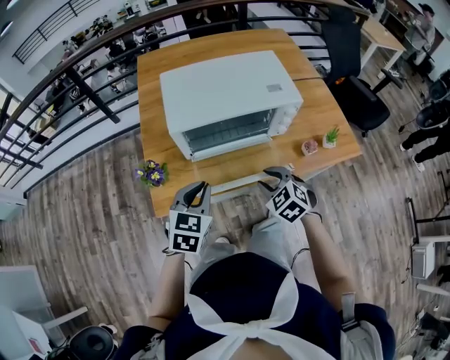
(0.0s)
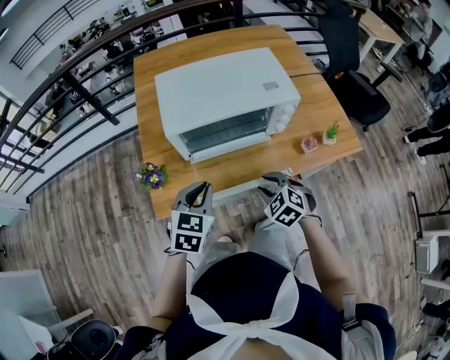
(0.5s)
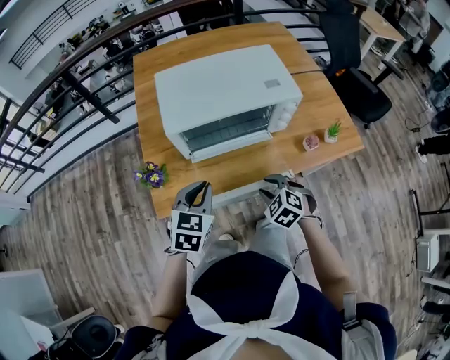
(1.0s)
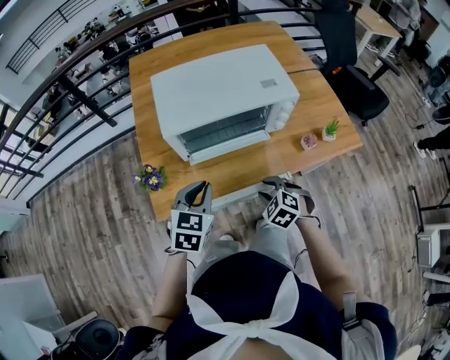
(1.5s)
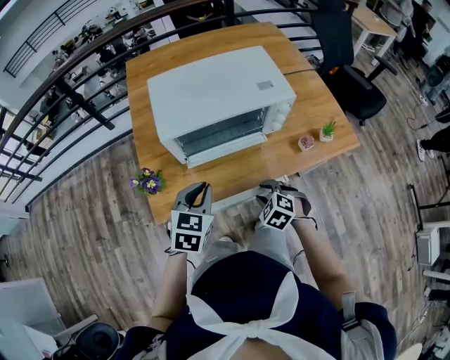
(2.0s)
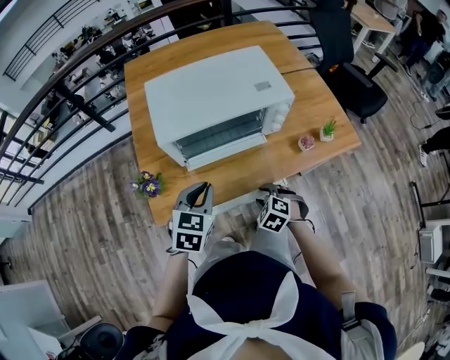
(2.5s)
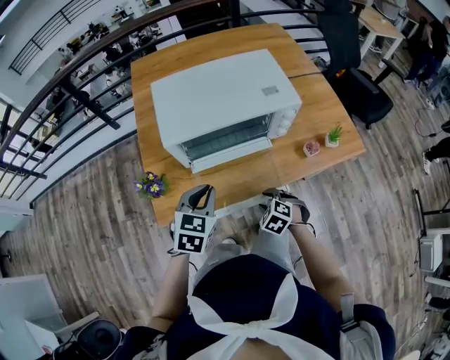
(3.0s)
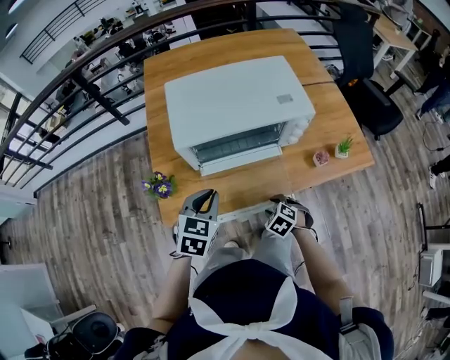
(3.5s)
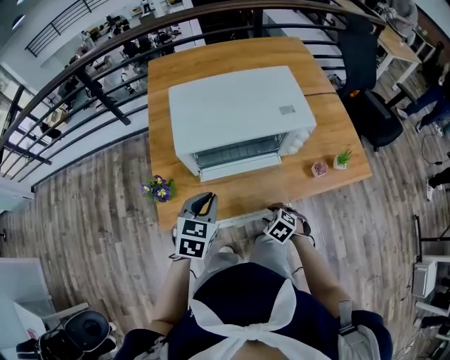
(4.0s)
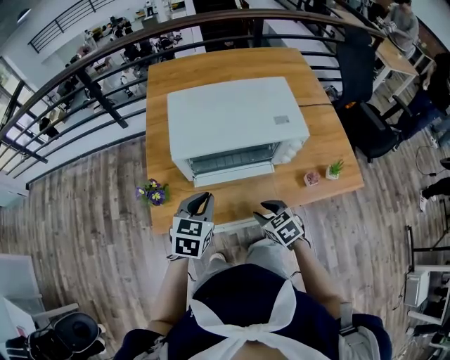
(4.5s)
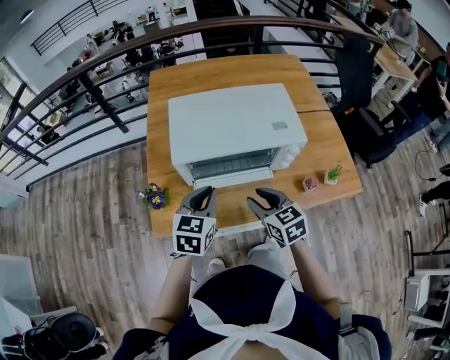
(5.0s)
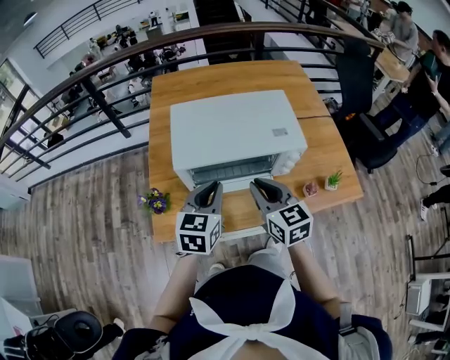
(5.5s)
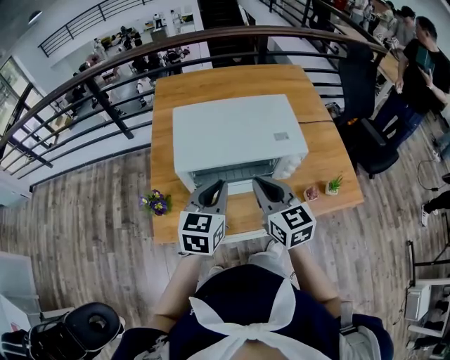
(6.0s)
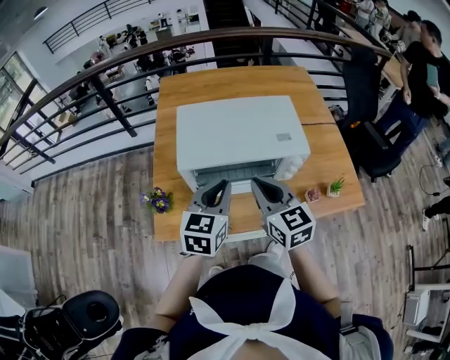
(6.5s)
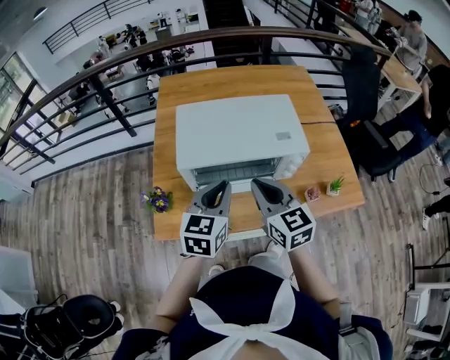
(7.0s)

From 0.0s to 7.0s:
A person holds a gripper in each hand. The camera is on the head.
From 0.0s to 2.0s: The right gripper moves downward, approximately 10 cm.
From 2.0s to 3.5s: The right gripper travels downward by approximately 5 cm.
From 3.5s to 5.0s: The left gripper goes roughly 5 cm upward; the right gripper goes some 20 cm upward and forward, and tilts its fingers approximately 40 degrees upward.
From 5.0s to 7.0s: The right gripper is displaced upward by about 10 cm, and closes. Meanwhile the left gripper travels upward by some 5 cm.

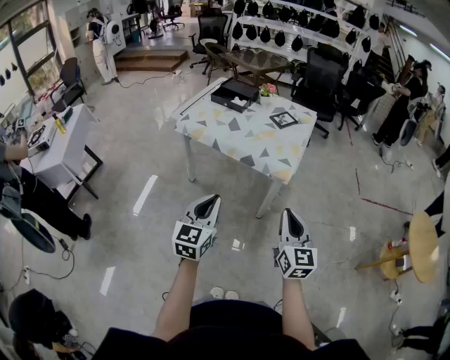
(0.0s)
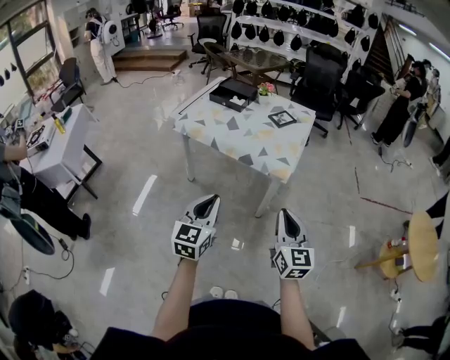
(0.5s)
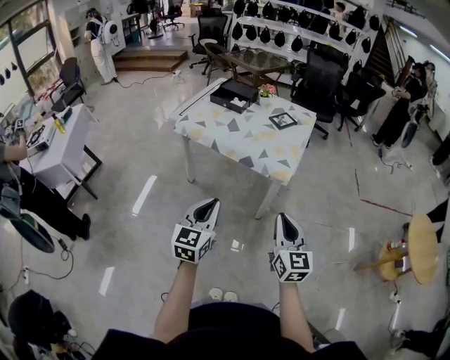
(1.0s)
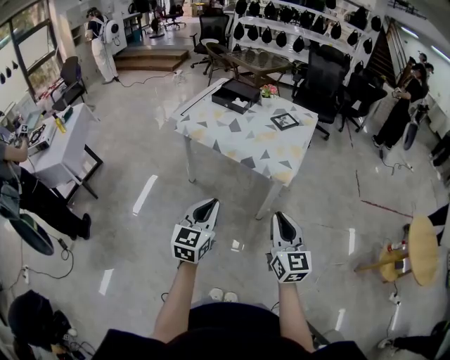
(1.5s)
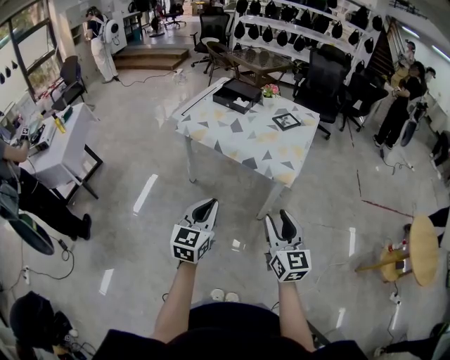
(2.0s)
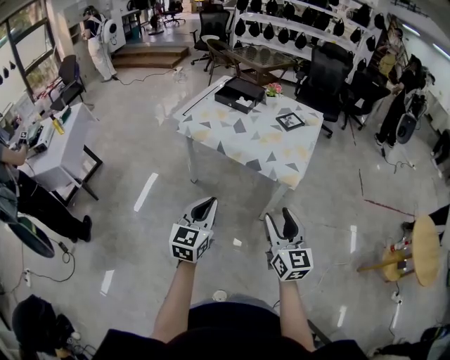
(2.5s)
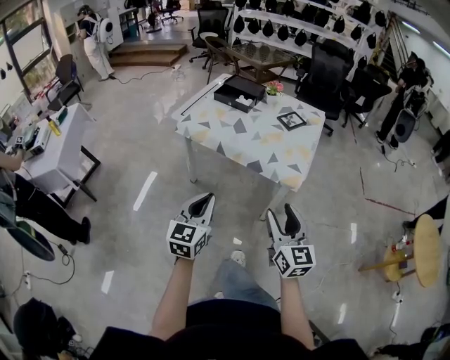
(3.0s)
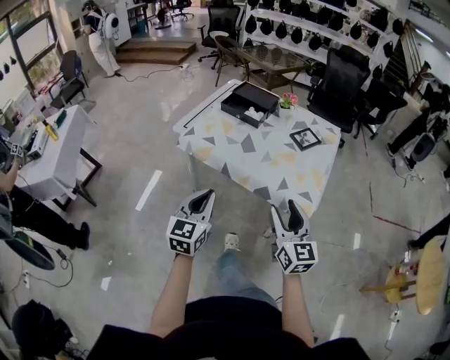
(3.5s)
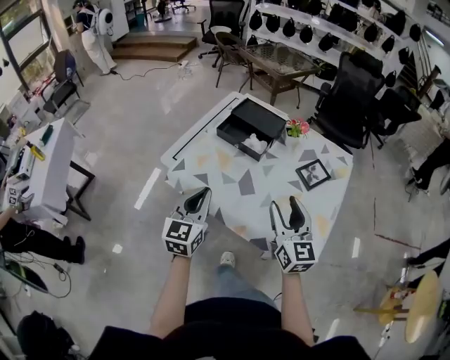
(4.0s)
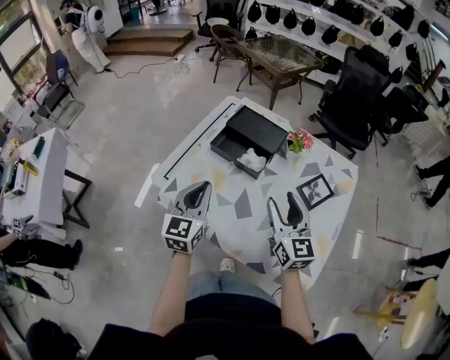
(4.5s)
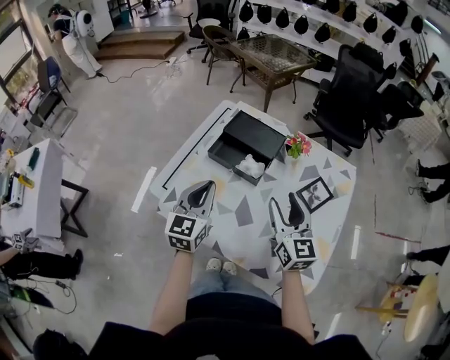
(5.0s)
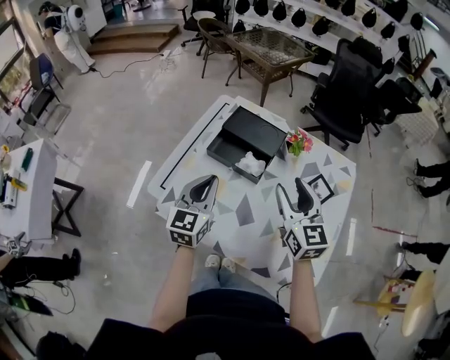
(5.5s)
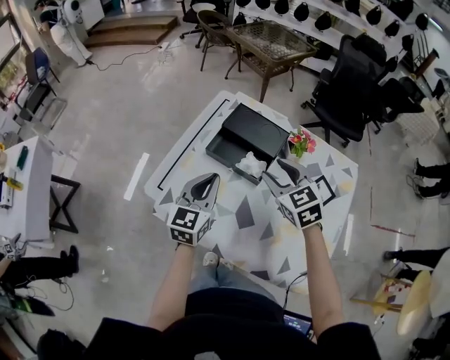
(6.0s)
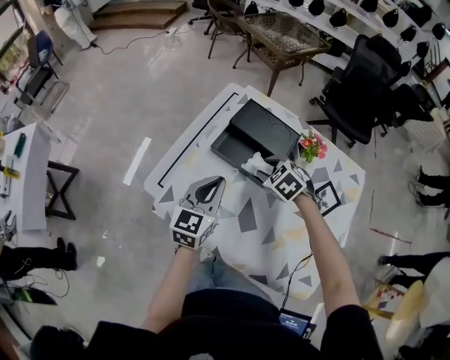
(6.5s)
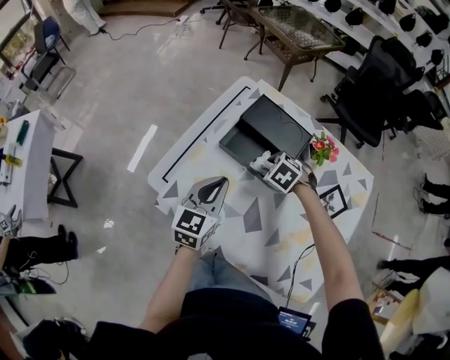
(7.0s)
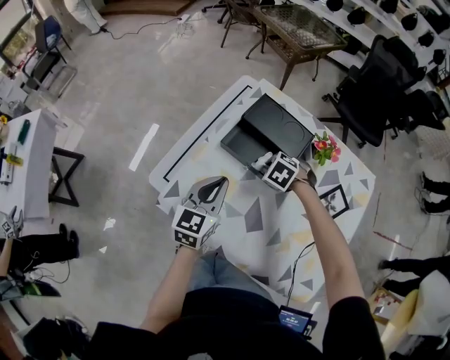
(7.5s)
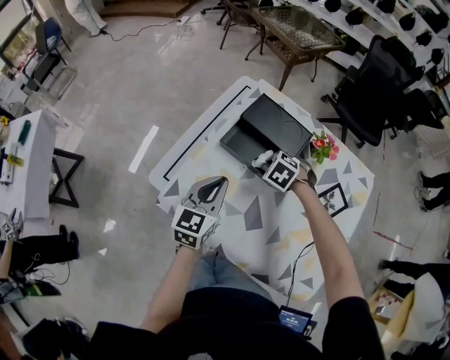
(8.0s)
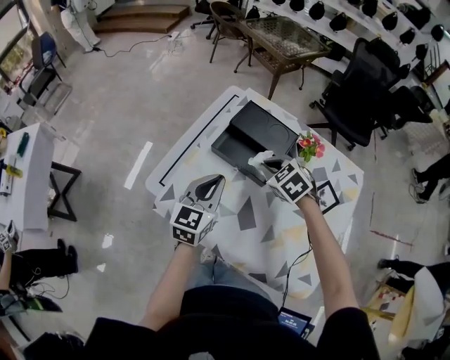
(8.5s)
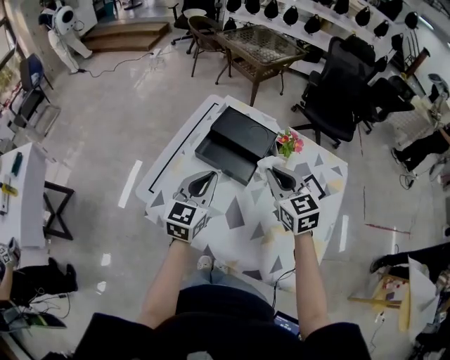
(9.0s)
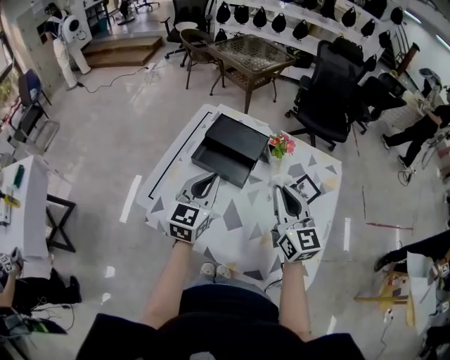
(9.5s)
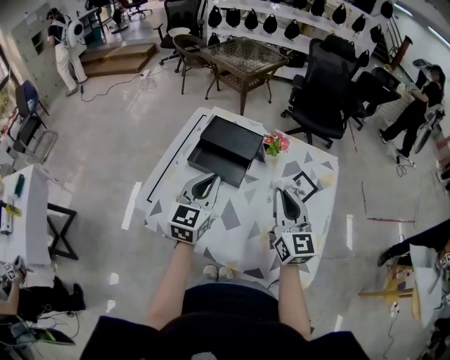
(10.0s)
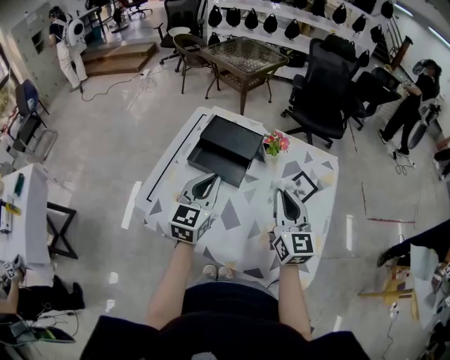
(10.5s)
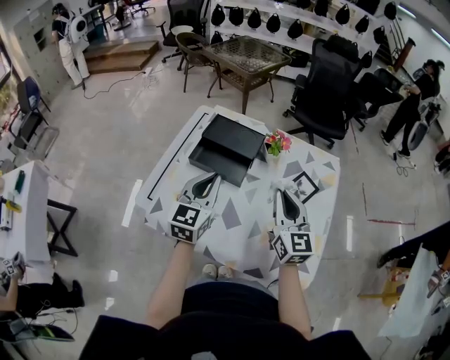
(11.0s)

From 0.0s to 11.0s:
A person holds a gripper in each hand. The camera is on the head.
From 0.0s to 2.0s: The right gripper ends up some 5 cm from where it was, and opens its fingers.
From 2.0s to 3.5s: The grippers both shift forward by approximately 20 cm.
From 3.5s to 5.5s: Both grippers are carried forward, roughly 40 cm.
From 5.5s to 7.5s: The left gripper travels downward by some 5 cm; the right gripper goes about 25 cm downward, tips its fingers downward by some 70 degrees, and closes its fingers.
From 7.5s to 9.0s: The right gripper heads upward, covering approximately 20 cm, and tilts its fingers some 50 degrees upward. Meanwhile the left gripper heads upward, covering about 5 cm.
From 9.0s to 11.0s: The left gripper moves approximately 5 cm. Meanwhile the right gripper is displaced backward and to the right by roughly 10 cm, and swivels some 30 degrees.

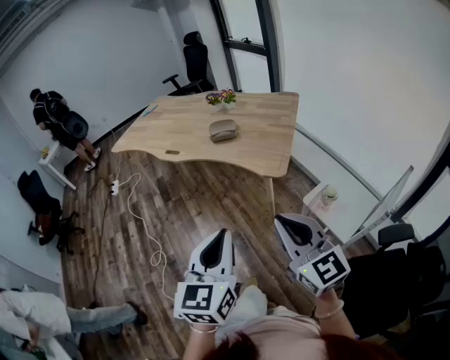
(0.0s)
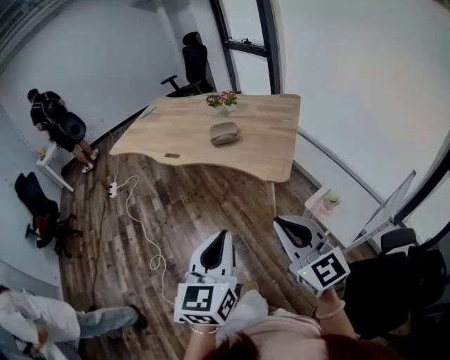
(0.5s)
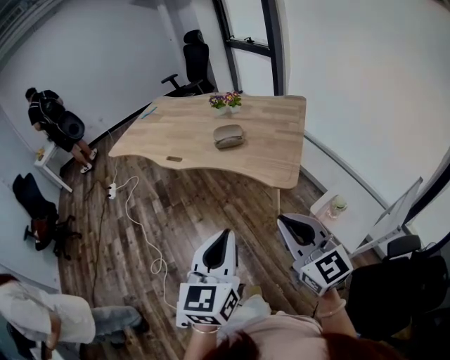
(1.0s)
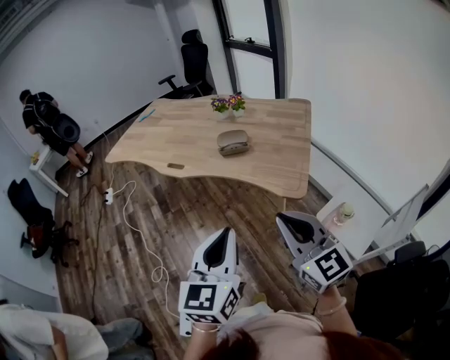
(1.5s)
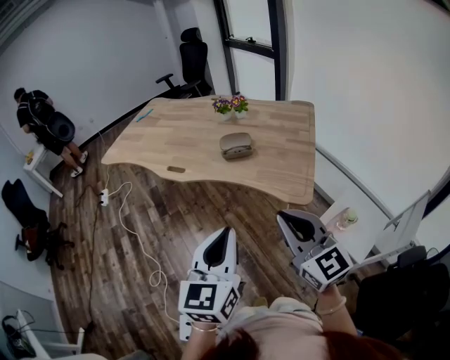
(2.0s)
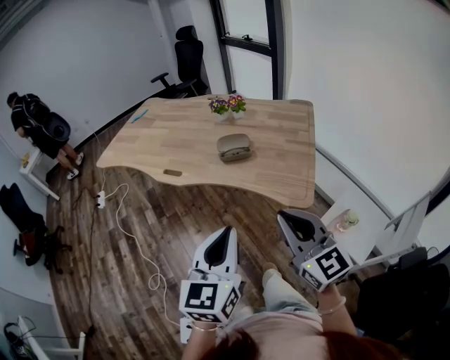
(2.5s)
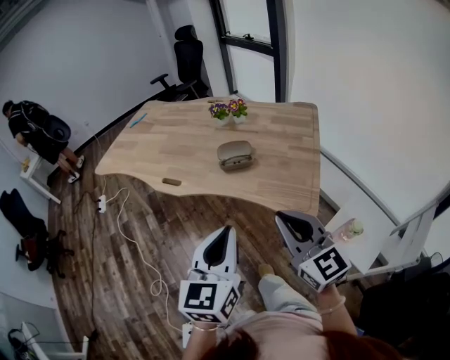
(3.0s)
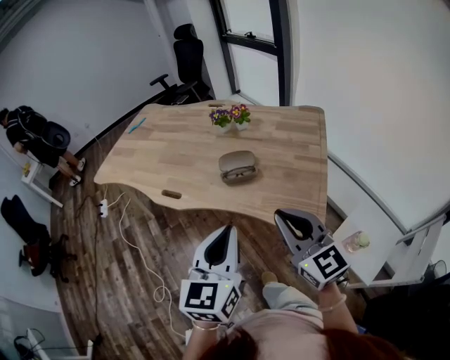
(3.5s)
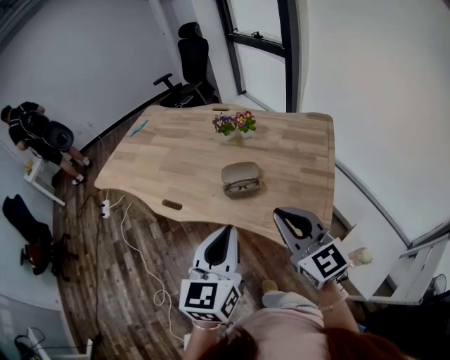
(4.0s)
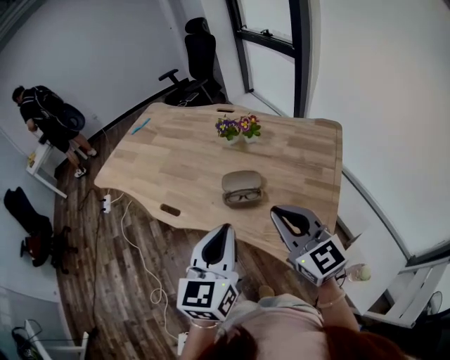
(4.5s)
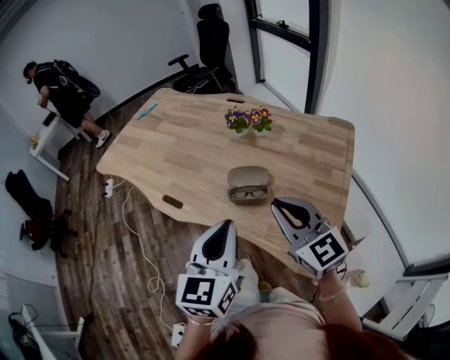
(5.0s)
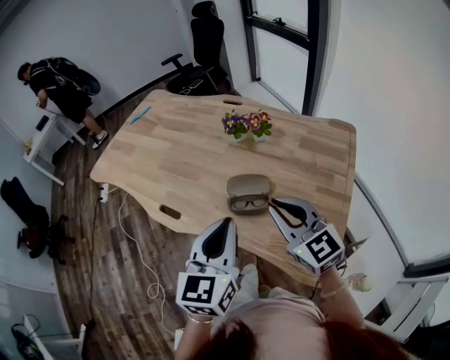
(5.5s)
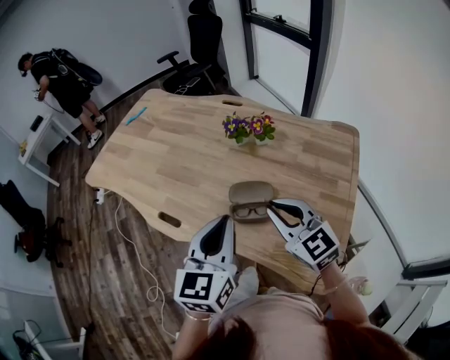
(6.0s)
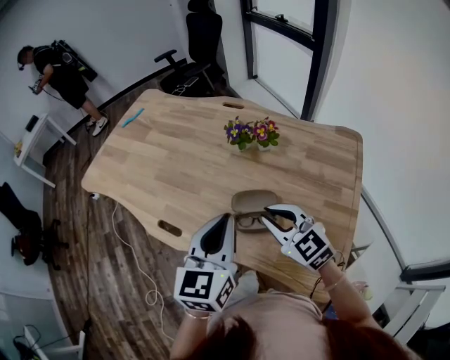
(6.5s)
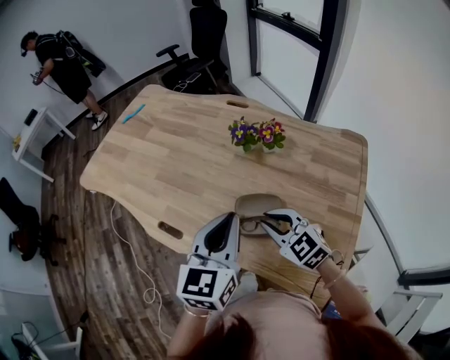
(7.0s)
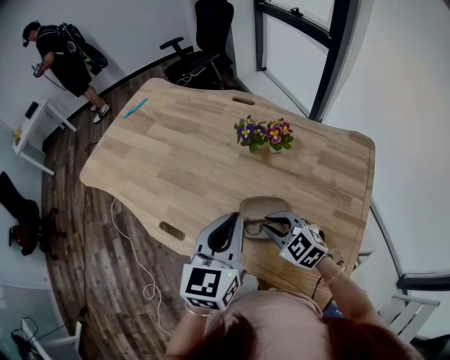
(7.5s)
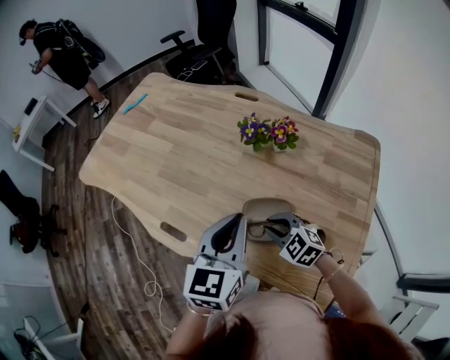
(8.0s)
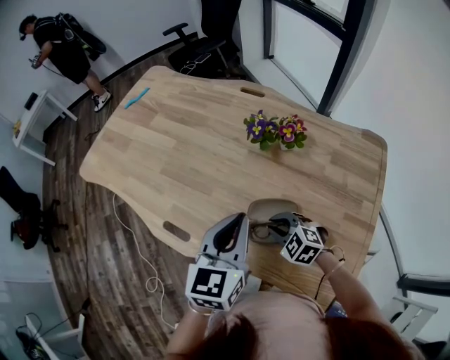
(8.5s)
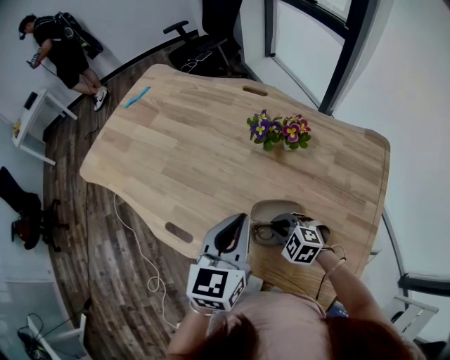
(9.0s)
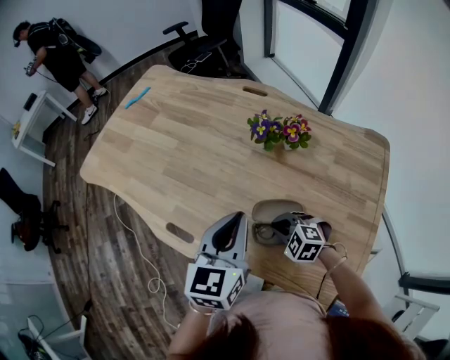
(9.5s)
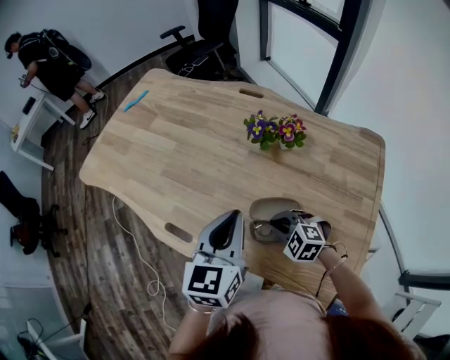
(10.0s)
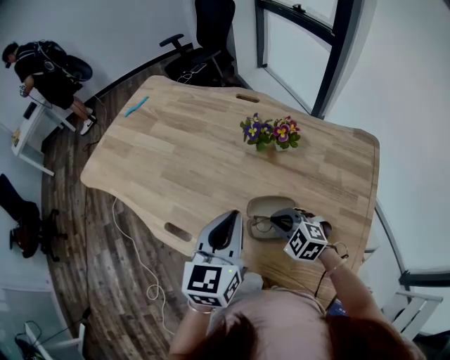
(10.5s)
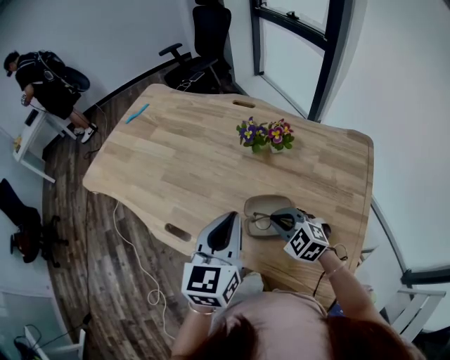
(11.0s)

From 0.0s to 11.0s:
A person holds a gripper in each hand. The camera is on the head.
From 0.0s to 2.0s: The right gripper heads forward and to the left, covering roughly 20 cm. Meanwhile the left gripper heads forward, covering some 20 cm.
From 2.0s to 3.5s: Both grippers move forward, approximately 15 cm.
From 3.5s to 5.5s: The two grippers go approximately 20 cm forward.
From 5.5s to 7.5s: The left gripper heads forward, covering about 15 cm. Meanwhile the right gripper goes roughly 20 cm downward and forward, and swivels roughly 30 degrees.
From 7.5s to 9.0s: The left gripper moves some 5 cm, while the right gripper goes about 10 cm downward, and swivels roughly 20 degrees.
From 9.0s to 11.0s: The right gripper shifts approximately 10 cm upward. The left gripper ends up roughly 5 cm from where it was.
